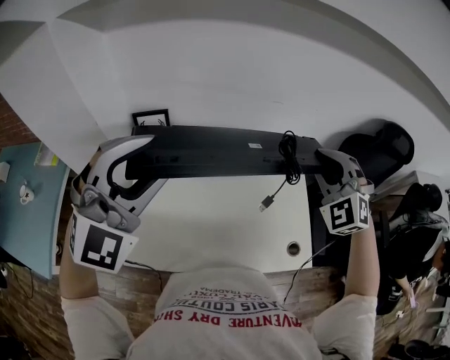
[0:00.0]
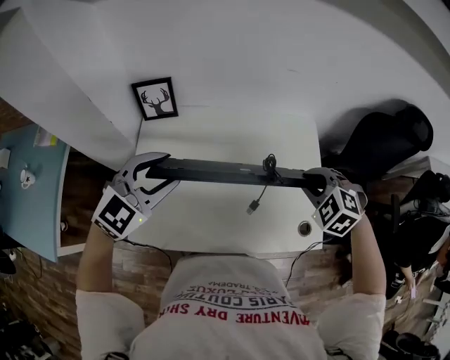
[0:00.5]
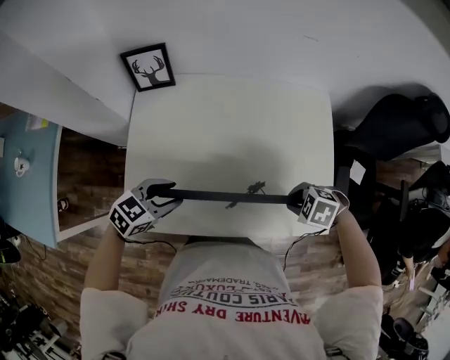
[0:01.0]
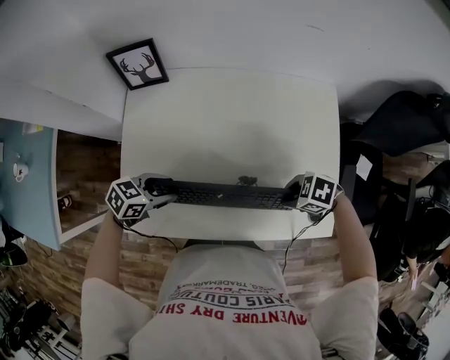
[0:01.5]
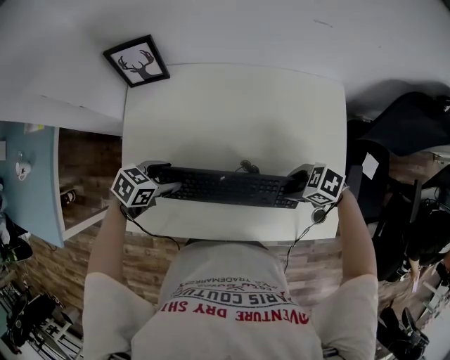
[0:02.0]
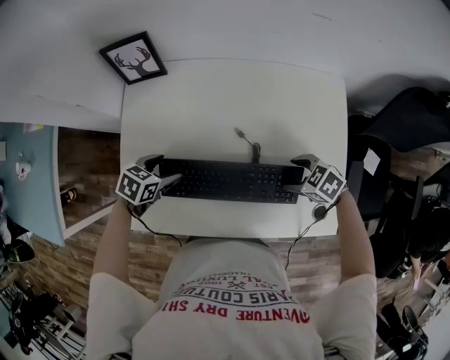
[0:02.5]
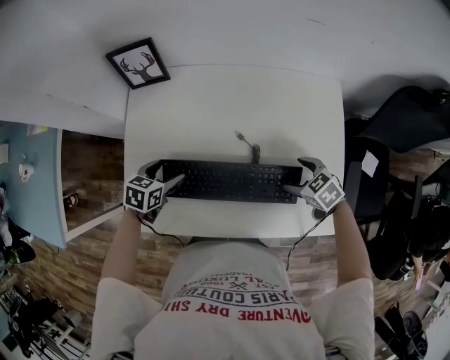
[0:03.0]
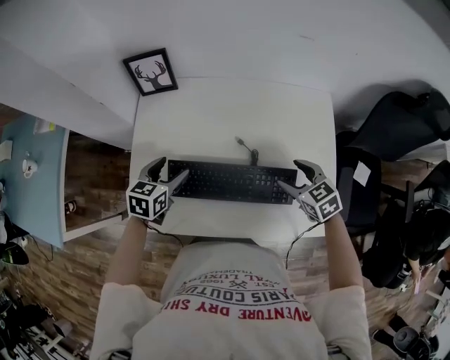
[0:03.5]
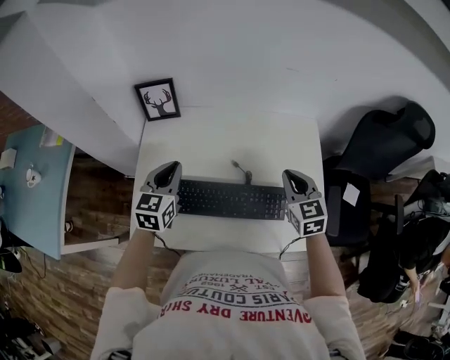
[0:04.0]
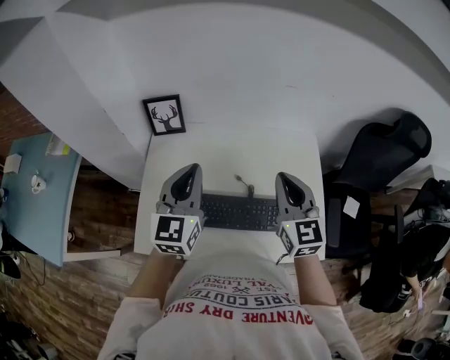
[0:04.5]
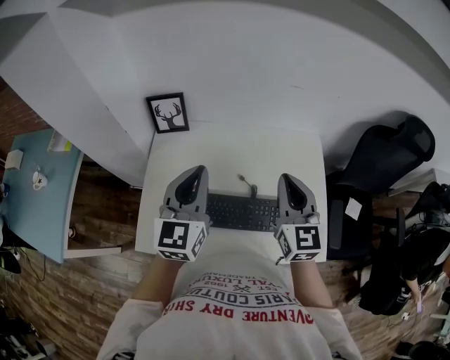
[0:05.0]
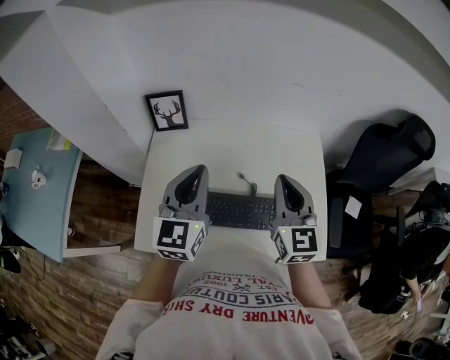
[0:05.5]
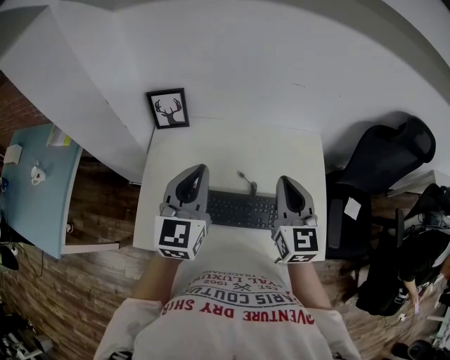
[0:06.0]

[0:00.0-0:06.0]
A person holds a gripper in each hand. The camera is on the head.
0:00.0 to 0:02.0: Both grippers travel together downward, some 40 cm. The right gripper tilts its fingers approximately 30 degrees downward; the left gripper tilts its fingers about 40 degrees downward.
0:02.0 to 0:04.0: Both grippers move upward, roughly 20 cm. The left gripper turns by about 50 degrees, and closes up; the right gripper swivels approximately 70 degrees, and closes up.
0:04.0 to 0:06.0: The left gripper travels upward and to the right by roughly 15 cm. The right gripper heads upward and to the left, covering roughly 15 cm, and swivels about 20 degrees.

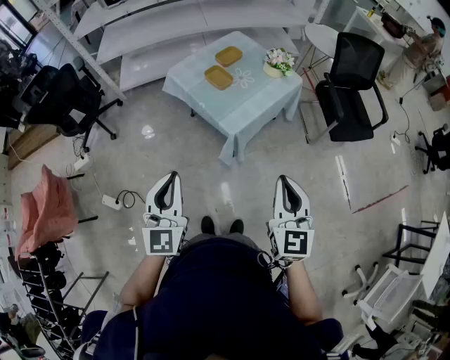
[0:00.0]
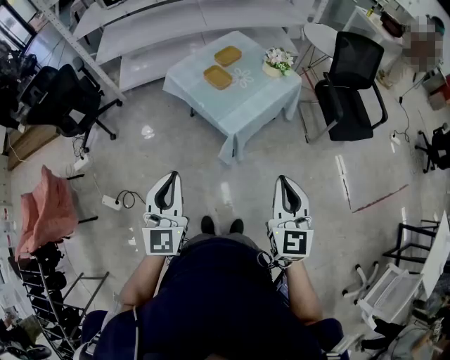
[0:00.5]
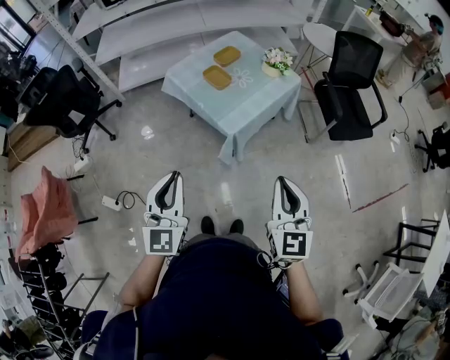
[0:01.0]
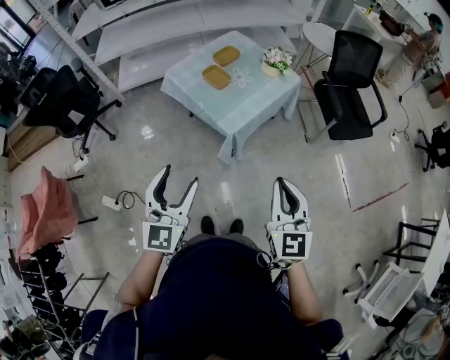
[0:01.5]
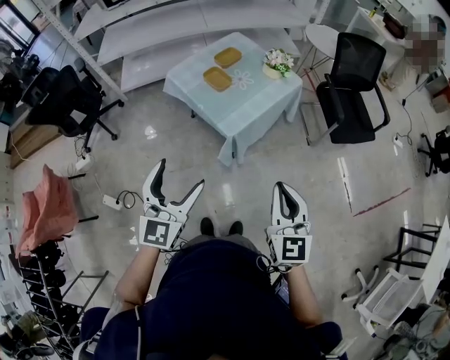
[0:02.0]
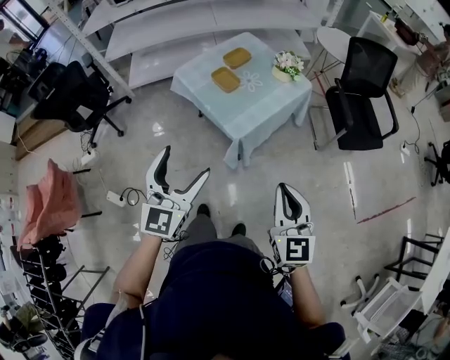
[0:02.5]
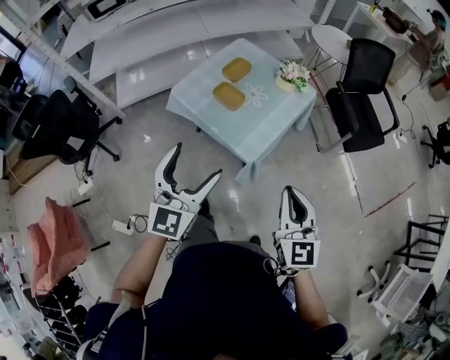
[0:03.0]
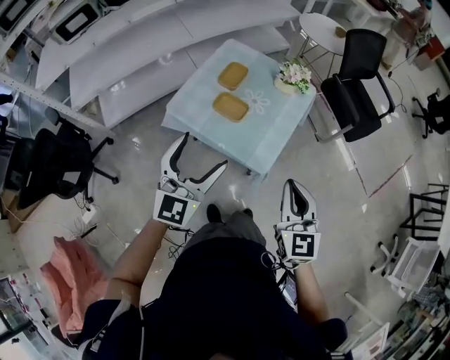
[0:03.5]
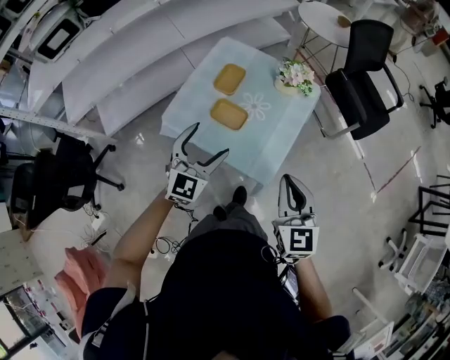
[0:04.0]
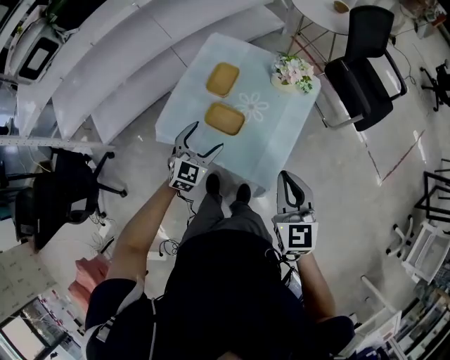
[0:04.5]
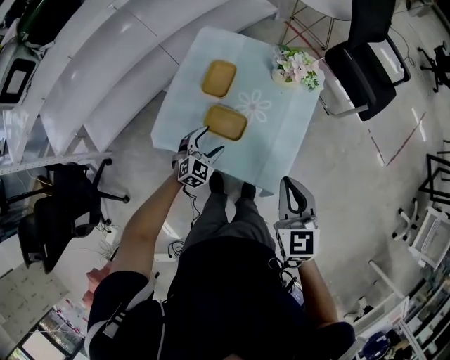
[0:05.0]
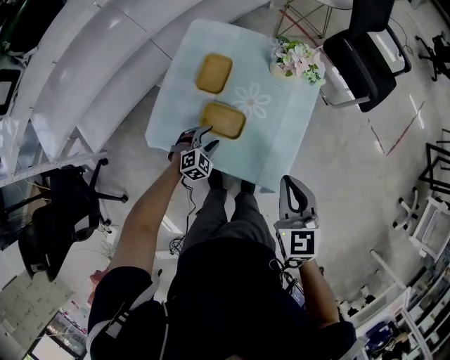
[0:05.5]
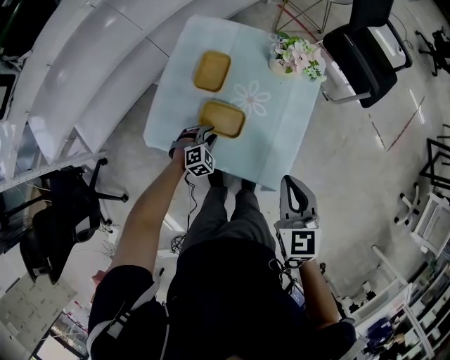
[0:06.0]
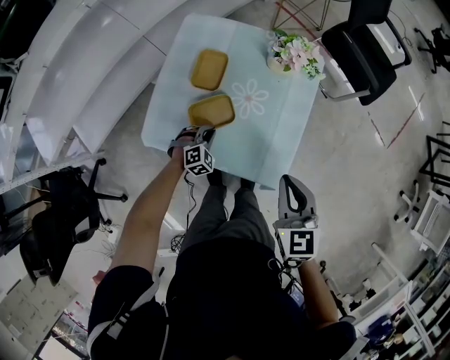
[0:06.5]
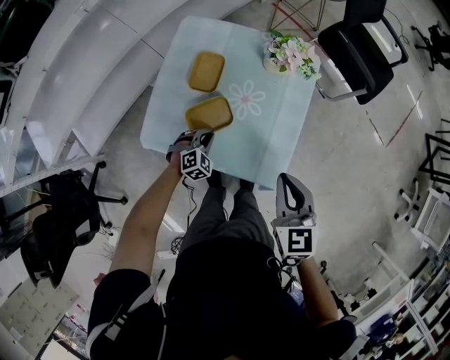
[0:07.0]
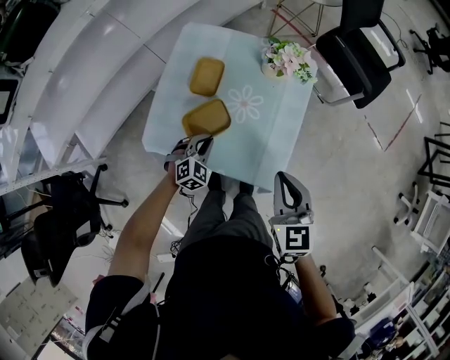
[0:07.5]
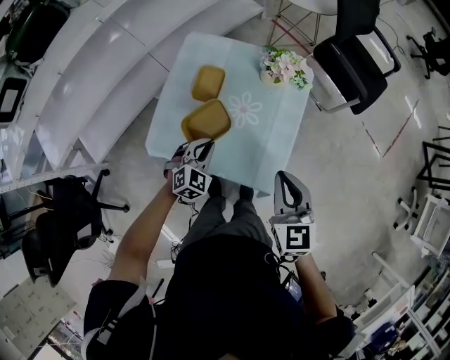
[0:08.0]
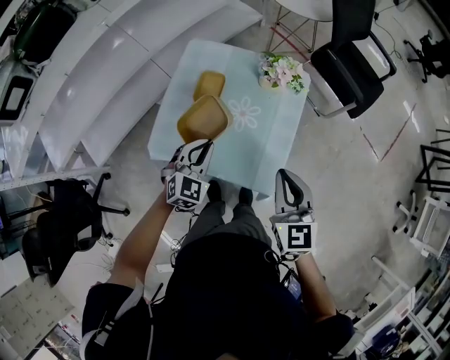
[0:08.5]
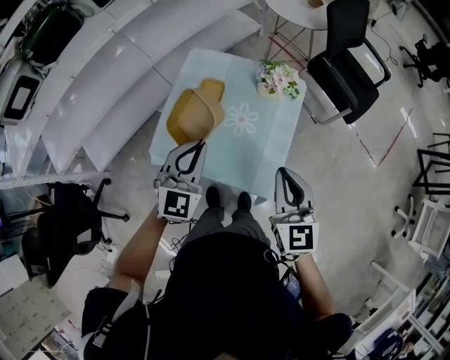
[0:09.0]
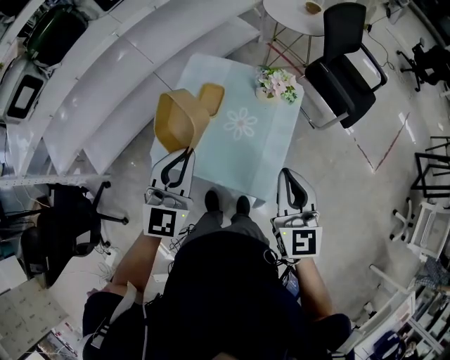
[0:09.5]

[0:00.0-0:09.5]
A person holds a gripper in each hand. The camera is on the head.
0:00.0 to 0:02.0: The left gripper opens its fingers.
0:02.0 to 0:04.0: The left gripper heads forward, covering approximately 40 cm, and turns by about 30 degrees. The right gripper shifts approximately 35 cm forward and to the left.
0:04.0 to 0:05.5: The right gripper heads forward and downward, covering some 15 cm, while the left gripper shifts some 35 cm downward, tips its fingers downward by about 40 degrees, and closes up.
0:05.5 to 0:07.5: The left gripper heads upward, covering about 5 cm, and closes.
0:07.5 to 0:09.5: The left gripper shifts approximately 35 cm upward, and points its fingers approximately 40 degrees further upward. Meanwhile the right gripper shifts approximately 15 cm upward.

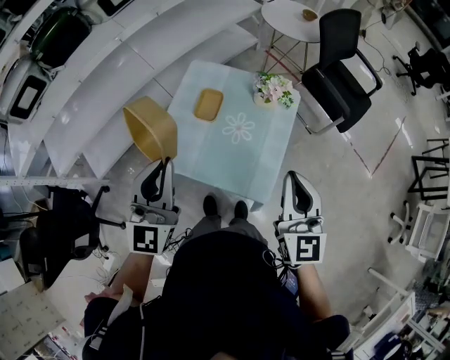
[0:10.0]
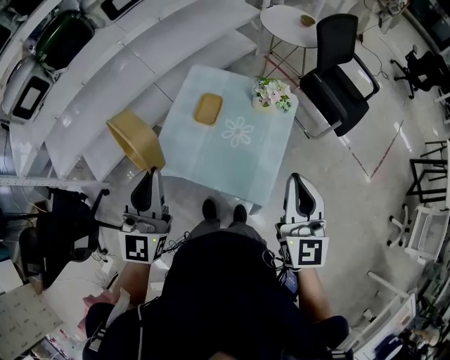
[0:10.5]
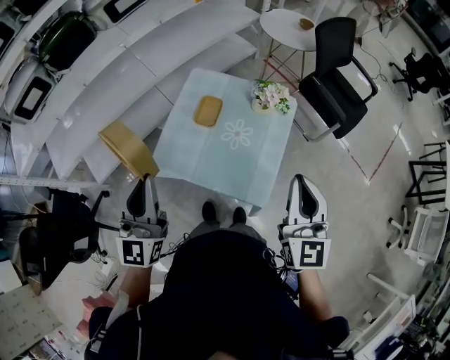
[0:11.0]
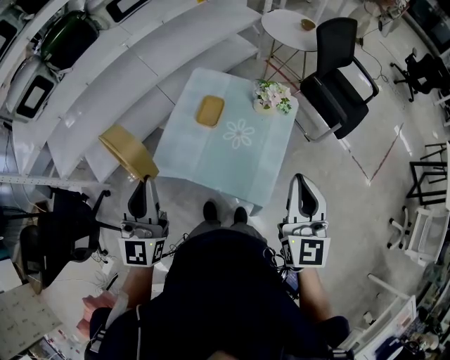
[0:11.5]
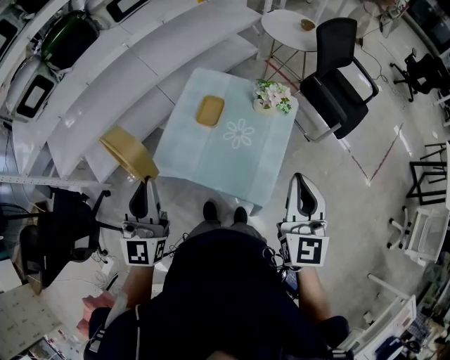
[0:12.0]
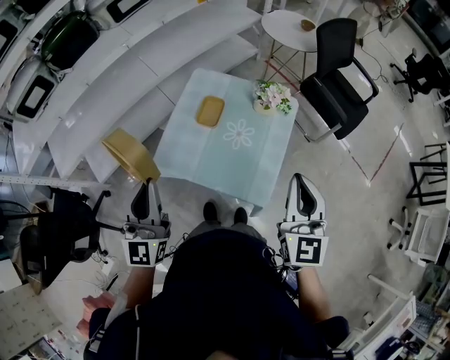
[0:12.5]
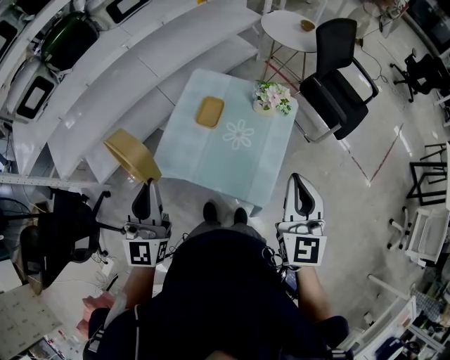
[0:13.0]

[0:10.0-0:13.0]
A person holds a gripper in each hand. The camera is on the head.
0:10.0 to 0:11.5: The left gripper heads to the left and backward, covering roughly 10 cm.
0:11.5 to 0:13.0: Both grippers stay about where they are.

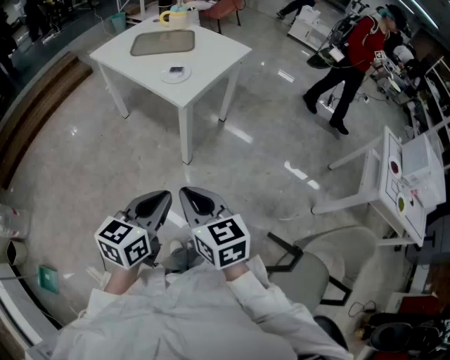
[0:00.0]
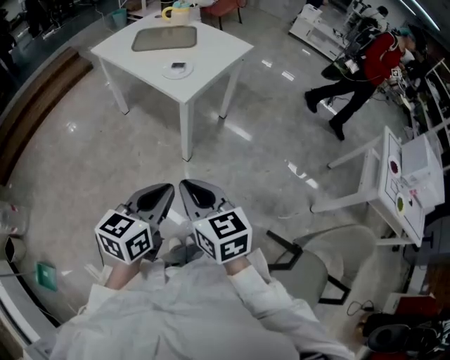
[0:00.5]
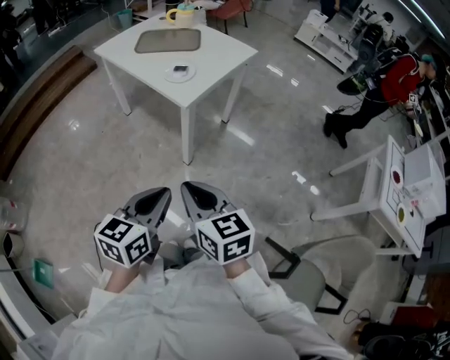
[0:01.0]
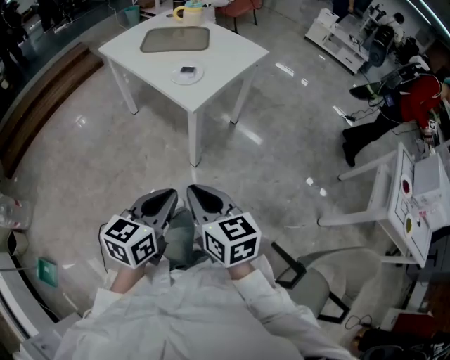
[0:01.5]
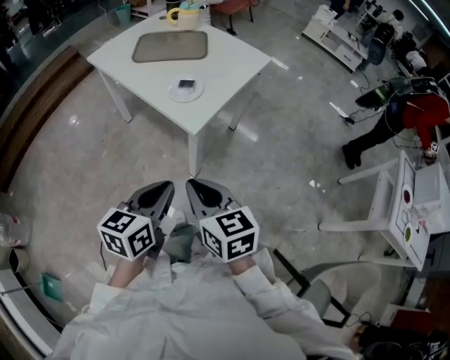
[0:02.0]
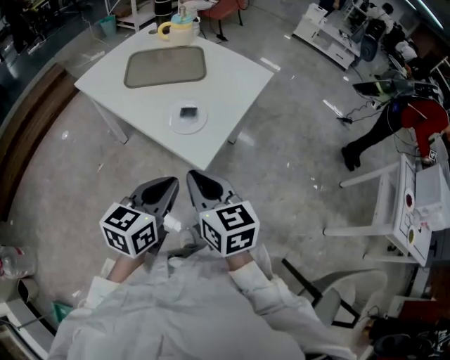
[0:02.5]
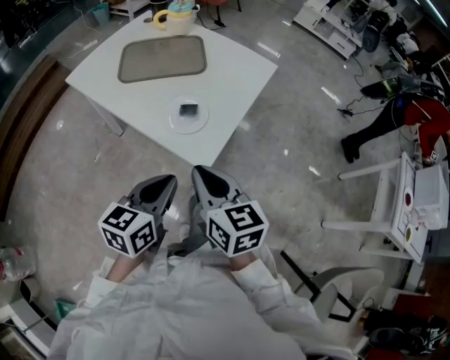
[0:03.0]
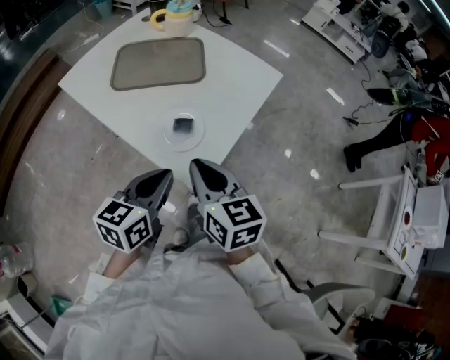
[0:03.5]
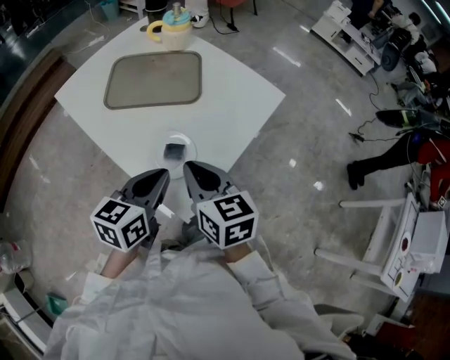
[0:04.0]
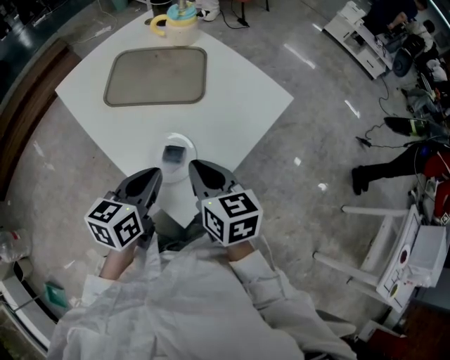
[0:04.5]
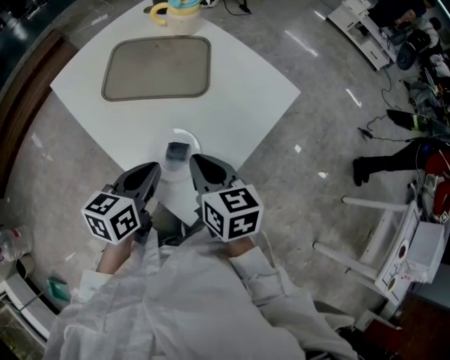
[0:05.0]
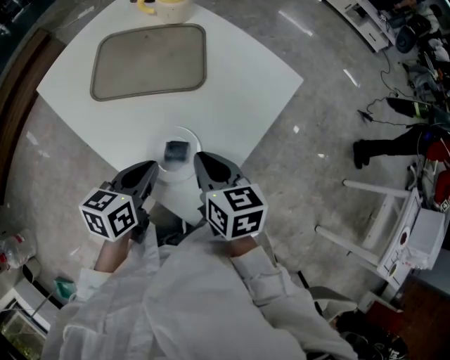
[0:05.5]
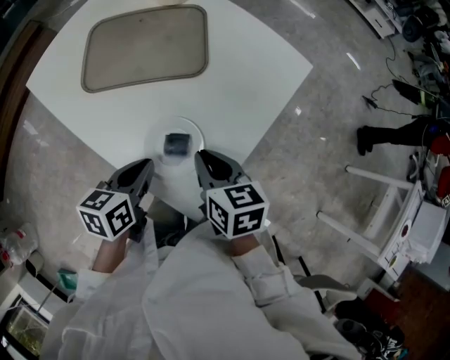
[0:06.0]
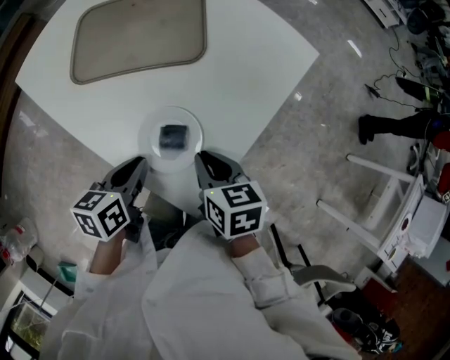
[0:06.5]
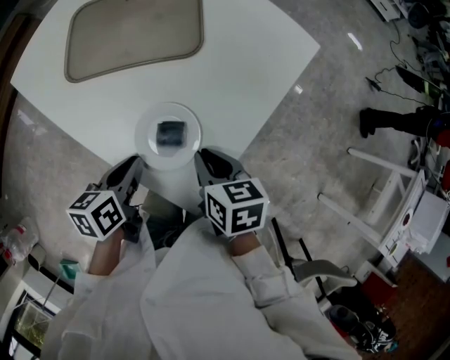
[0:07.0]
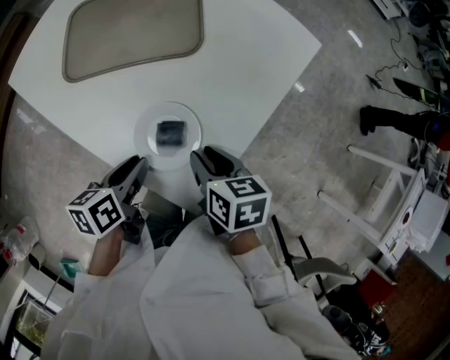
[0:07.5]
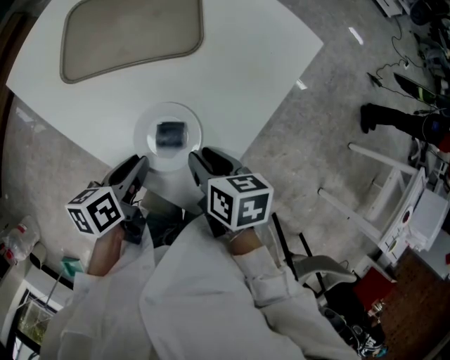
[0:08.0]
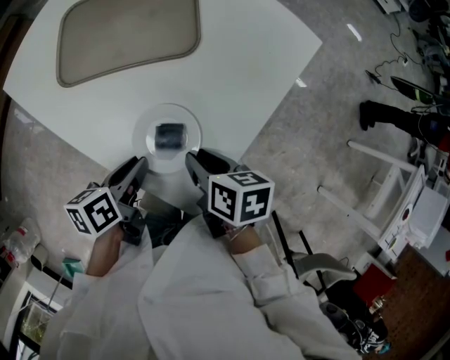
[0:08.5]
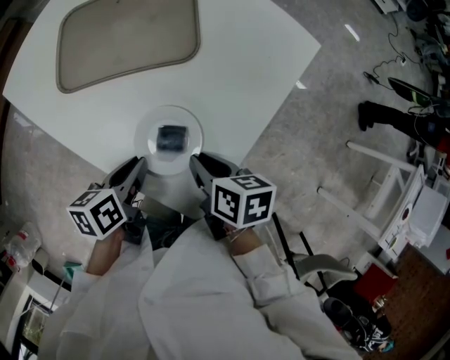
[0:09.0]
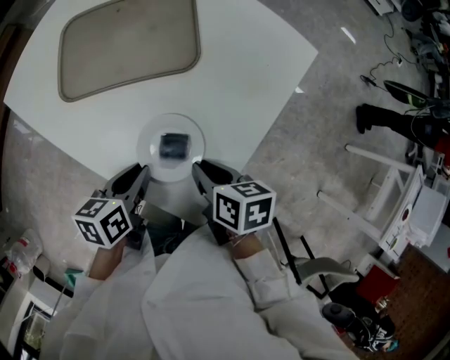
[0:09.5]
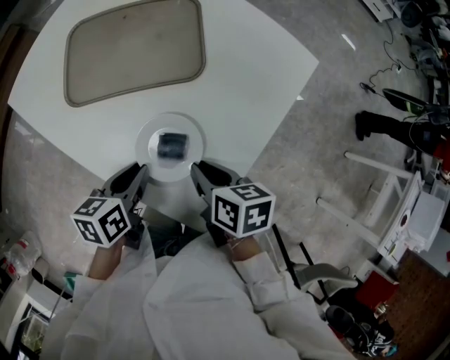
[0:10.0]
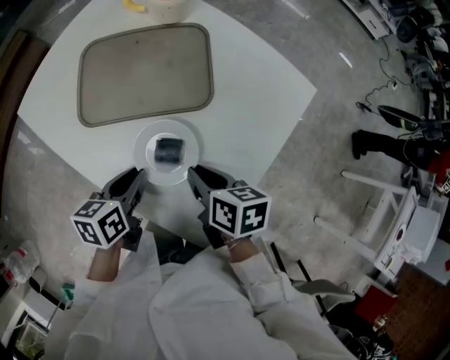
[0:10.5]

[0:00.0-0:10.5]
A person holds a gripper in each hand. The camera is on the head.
0:00.0 to 0:02.0: Both grippers travel together forward, about 20 cm.
0:02.0 to 0:04.0: The two grippers go some 35 cm forward.
0:04.0 to 0:06.5: The left gripper is displaced downward and to the left by roughly 15 cm, and swivels approximately 30 degrees. Meanwhile the right gripper shifts about 15 cm downward, and swivels roughly 30 degrees.
0:06.5 to 0:08.5: The right gripper swivels about 20 degrees, and opens up.
0:08.5 to 0:10.5: The two grippers go about 10 cm forward.
